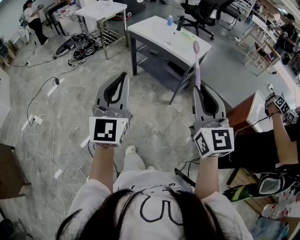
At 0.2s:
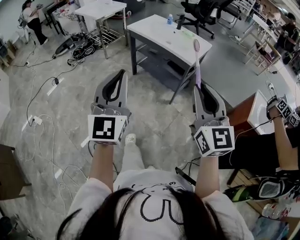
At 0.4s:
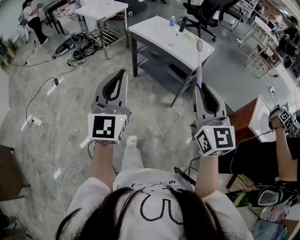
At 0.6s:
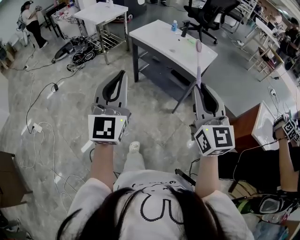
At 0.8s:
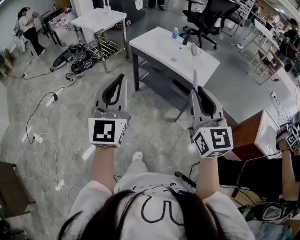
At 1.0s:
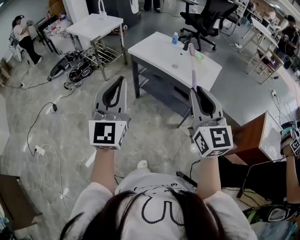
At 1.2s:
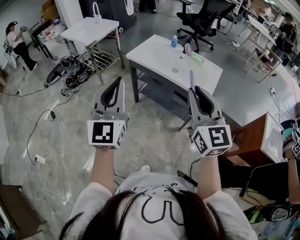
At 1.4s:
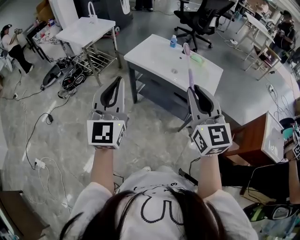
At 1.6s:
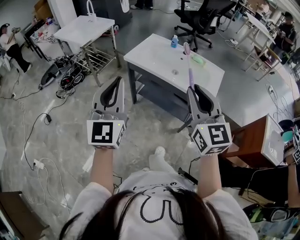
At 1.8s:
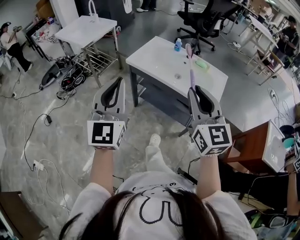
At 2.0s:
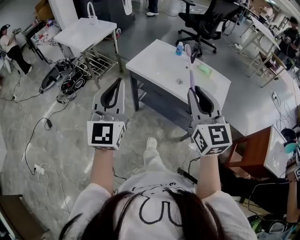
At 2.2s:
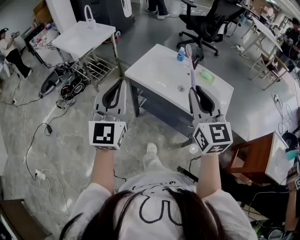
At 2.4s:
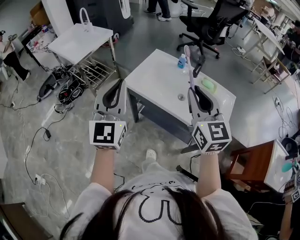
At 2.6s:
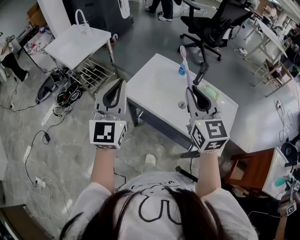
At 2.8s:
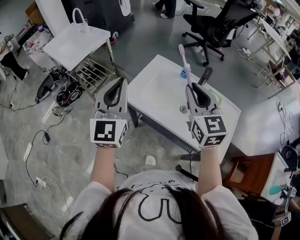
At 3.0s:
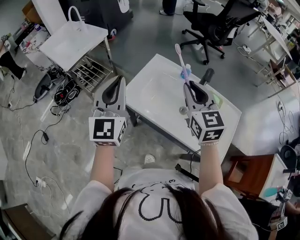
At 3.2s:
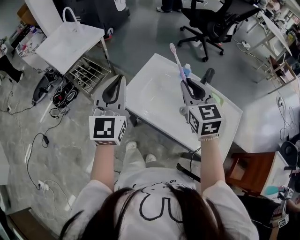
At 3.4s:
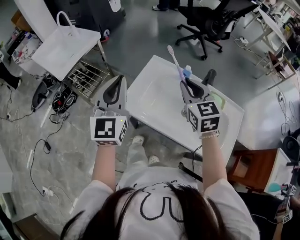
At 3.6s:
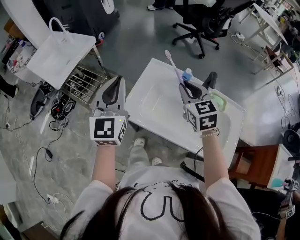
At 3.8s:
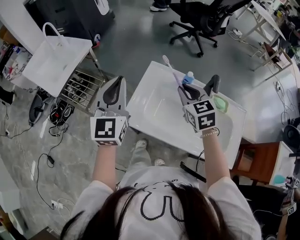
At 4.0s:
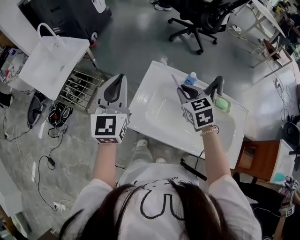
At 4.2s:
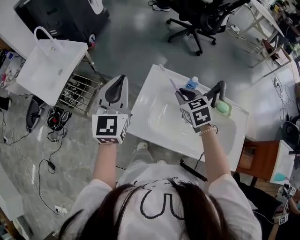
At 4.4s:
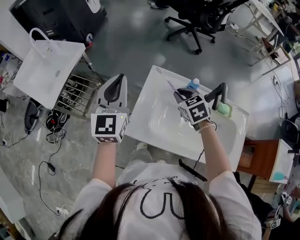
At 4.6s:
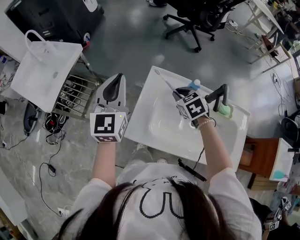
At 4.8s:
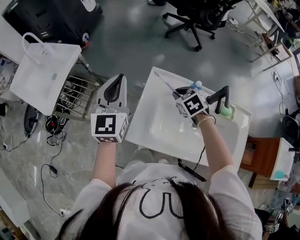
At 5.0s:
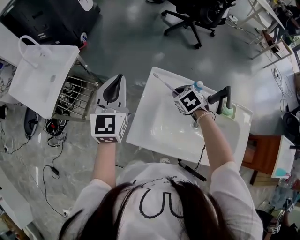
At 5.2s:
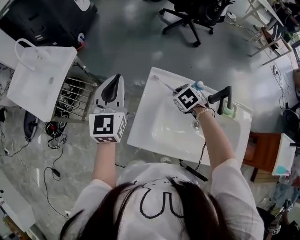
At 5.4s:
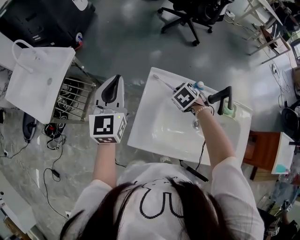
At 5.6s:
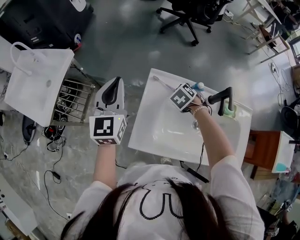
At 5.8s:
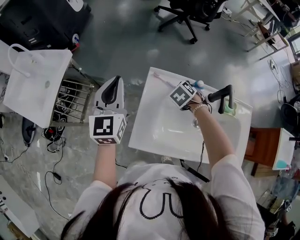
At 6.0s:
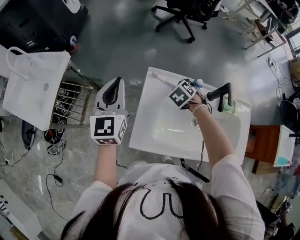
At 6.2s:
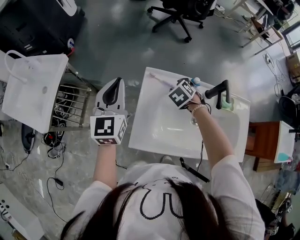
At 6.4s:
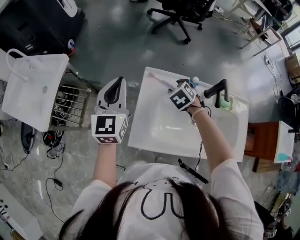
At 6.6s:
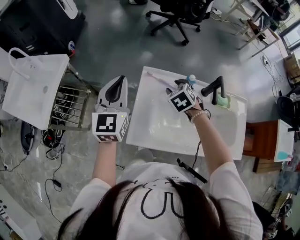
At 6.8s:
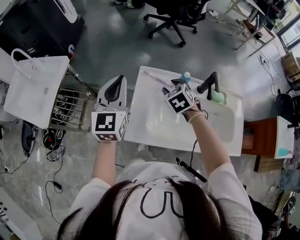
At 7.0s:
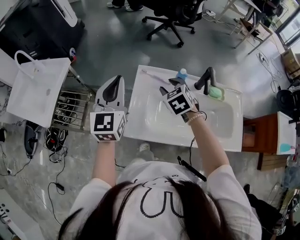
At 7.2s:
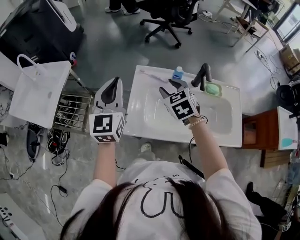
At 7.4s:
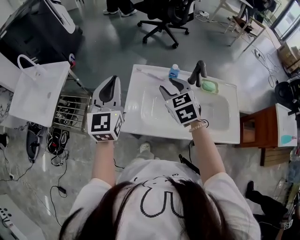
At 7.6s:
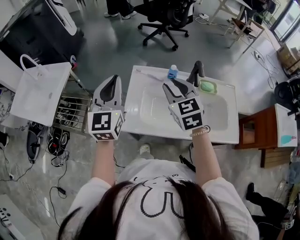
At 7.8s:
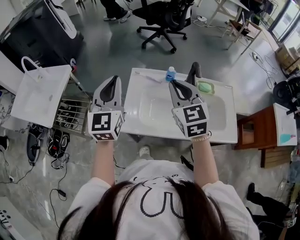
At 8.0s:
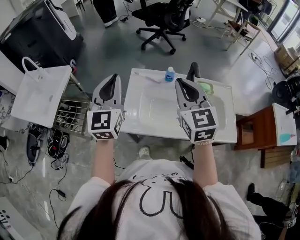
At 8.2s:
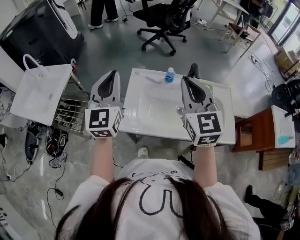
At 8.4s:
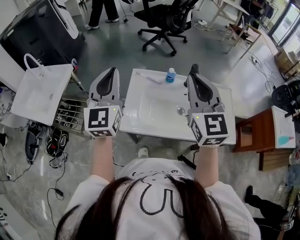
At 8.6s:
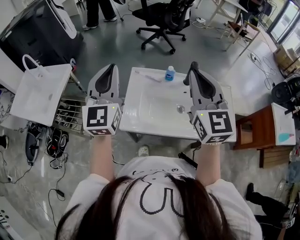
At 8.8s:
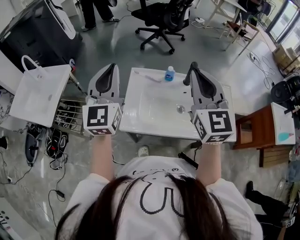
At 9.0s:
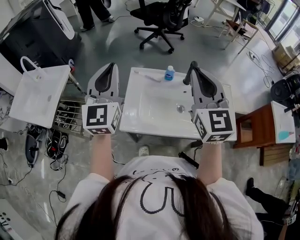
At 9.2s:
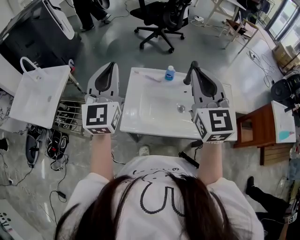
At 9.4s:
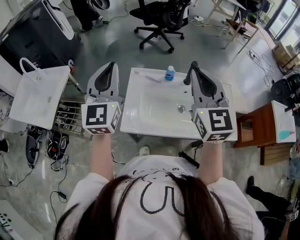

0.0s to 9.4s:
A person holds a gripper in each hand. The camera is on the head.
0.0s to 1.6s: The pair of grippers is taken forward, about 40 cm.
1.6s to 3.2s: The pair of grippers is taken forward, about 50 cm.
3.2s to 4.8s: The left gripper is displaced forward by approximately 25 cm. The right gripper moves downward and forward, roughly 30 cm, and points its fingers approximately 40 degrees further downward.
4.8s to 6.2s: The right gripper shifts by some 5 cm, and opens its fingers; the left gripper shifts by some 5 cm.
6.2s to 7.8s: The left gripper is displaced backward, upward and to the right by about 20 cm, while the right gripper shifts some 35 cm upward and backward, points its fingers roughly 50 degrees further upward, and closes.
7.8s to 9.4s: The left gripper moves upward, some 5 cm. Meanwhile the right gripper goes roughly 10 cm upward.

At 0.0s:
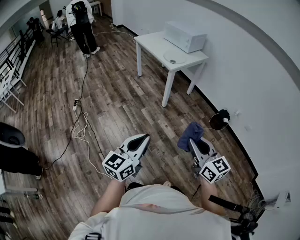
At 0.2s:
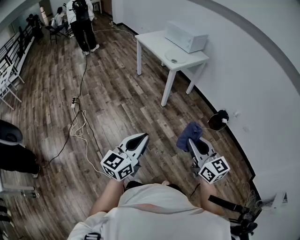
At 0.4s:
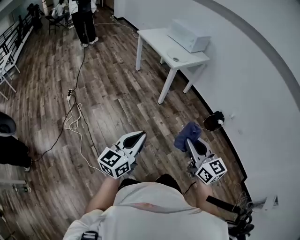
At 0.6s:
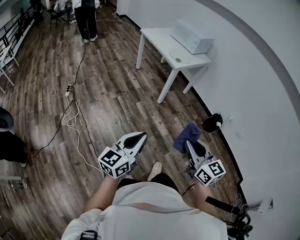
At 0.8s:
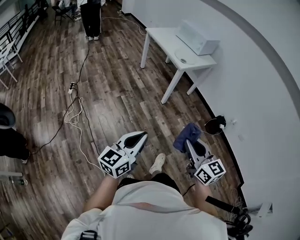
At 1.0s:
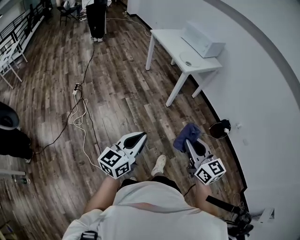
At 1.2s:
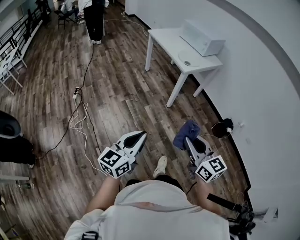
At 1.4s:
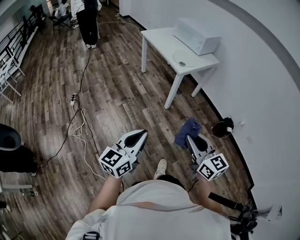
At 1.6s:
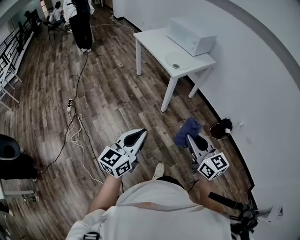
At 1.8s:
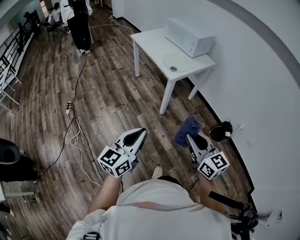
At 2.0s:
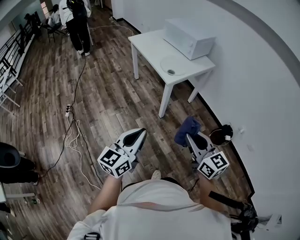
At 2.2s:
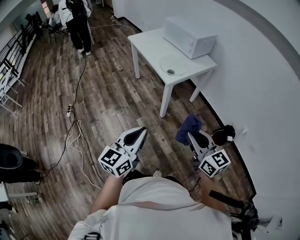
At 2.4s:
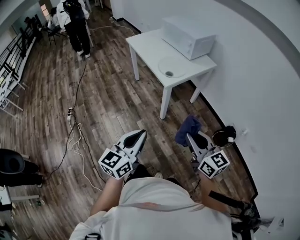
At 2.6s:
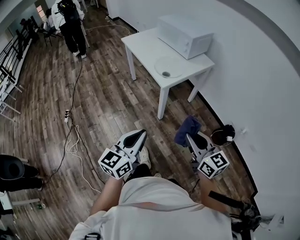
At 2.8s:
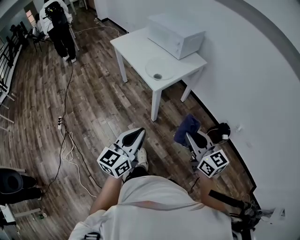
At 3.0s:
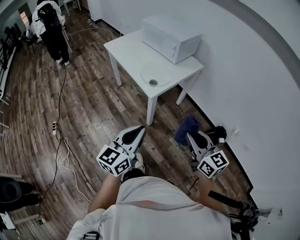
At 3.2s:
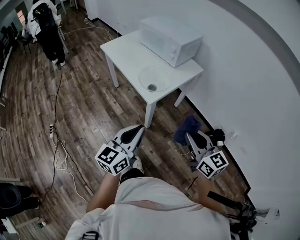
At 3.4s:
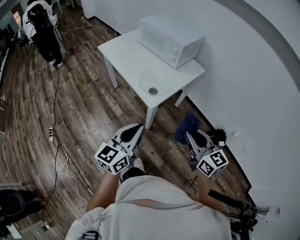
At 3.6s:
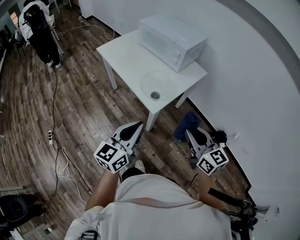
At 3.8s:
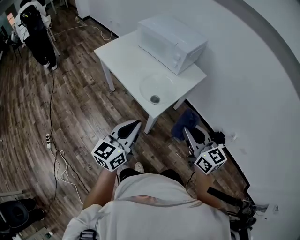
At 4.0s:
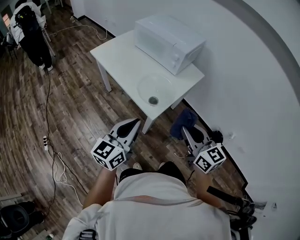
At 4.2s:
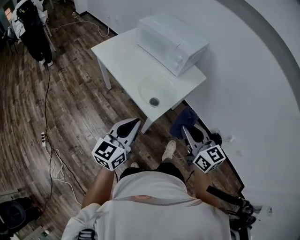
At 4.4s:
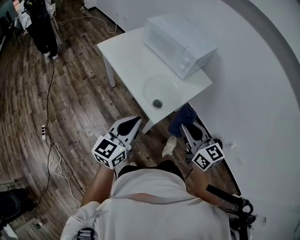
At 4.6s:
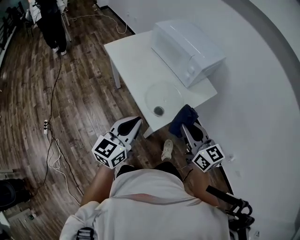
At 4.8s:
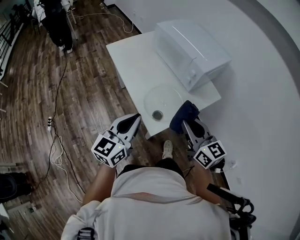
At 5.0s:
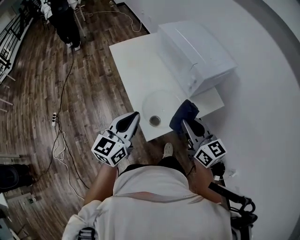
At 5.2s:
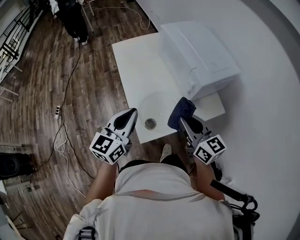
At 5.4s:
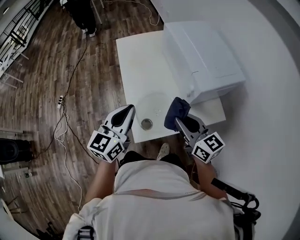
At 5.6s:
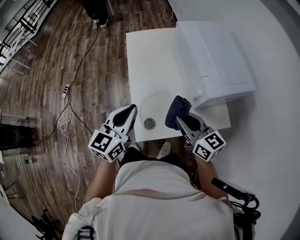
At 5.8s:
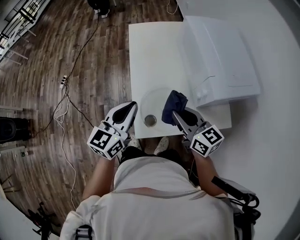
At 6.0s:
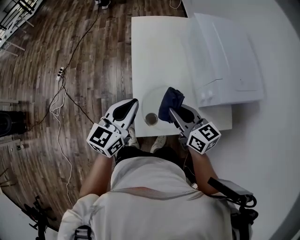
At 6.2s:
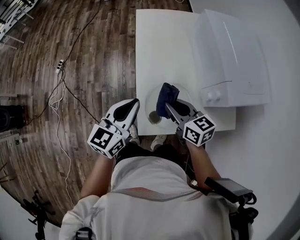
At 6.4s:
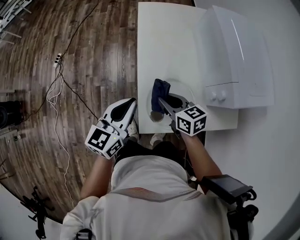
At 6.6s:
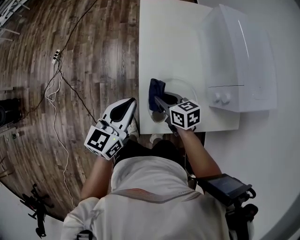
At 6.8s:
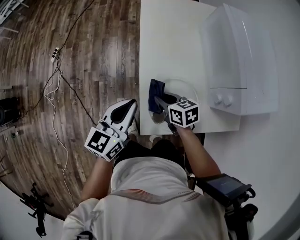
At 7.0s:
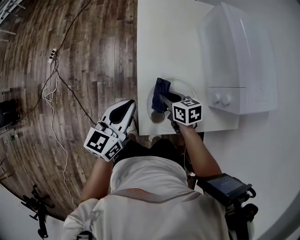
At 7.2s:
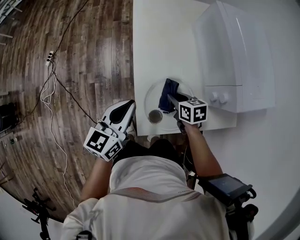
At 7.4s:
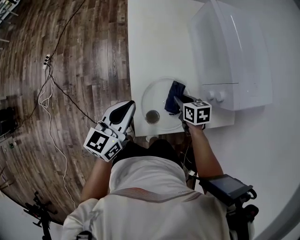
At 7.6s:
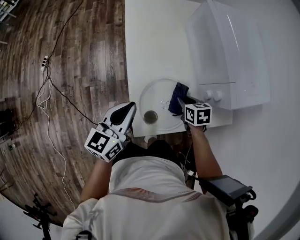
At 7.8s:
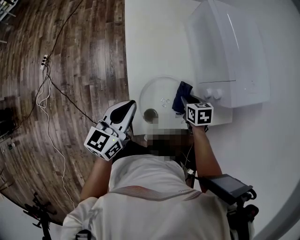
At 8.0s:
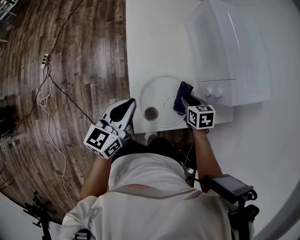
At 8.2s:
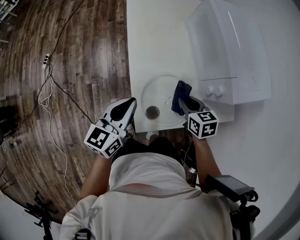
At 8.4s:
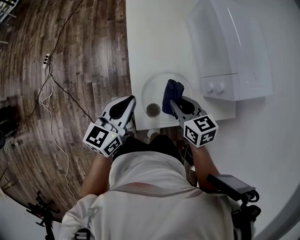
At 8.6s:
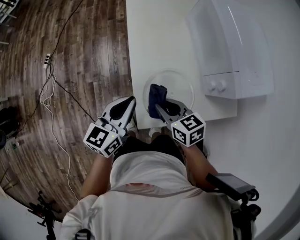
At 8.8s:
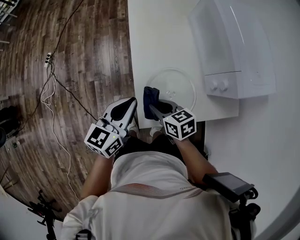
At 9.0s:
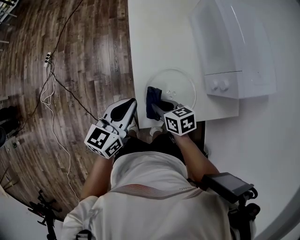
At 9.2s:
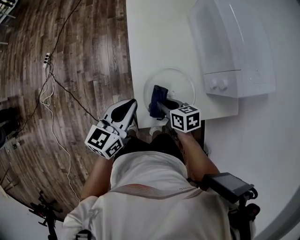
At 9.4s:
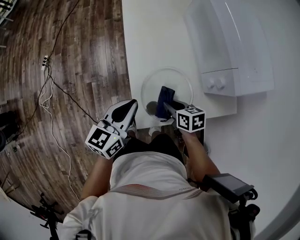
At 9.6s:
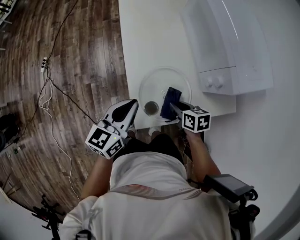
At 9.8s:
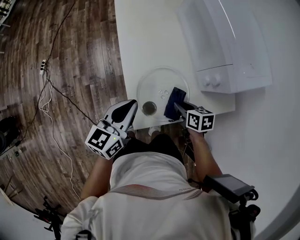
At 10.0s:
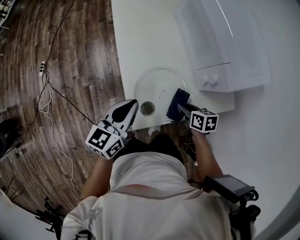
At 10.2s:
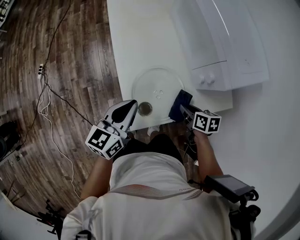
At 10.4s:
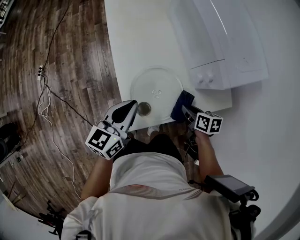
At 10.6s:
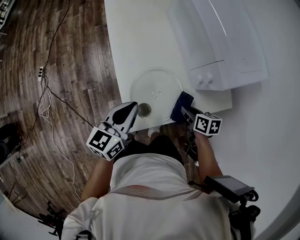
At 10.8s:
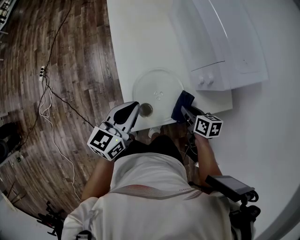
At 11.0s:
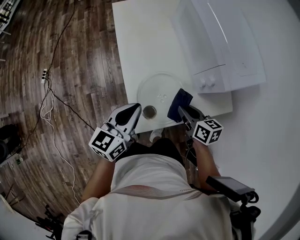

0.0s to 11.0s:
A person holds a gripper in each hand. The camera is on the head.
0.0s to 1.6s: The two grippers go roughly 20 cm forward.
1.6s to 3.2s: The two grippers go about 35 cm forward.
3.2s to 4.8s: Both grippers travel together forward, some 30 cm.
4.8s to 6.2s: The left gripper moves some 15 cm, and turns by approximately 30 degrees, while the right gripper moves approximately 20 cm, and turns by roughly 40 degrees.
6.2s to 7.8s: The right gripper shifts approximately 20 cm downward and to the right, and points its fingers approximately 40 degrees further downward; the left gripper heads downward, covering roughly 5 cm.
7.8s to 9.4s: The right gripper travels to the left and backward by about 10 cm, and turns by approximately 20 degrees.
9.4s to 11.0s: The right gripper shifts approximately 10 cm to the right and upward, and swivels roughly 20 degrees.

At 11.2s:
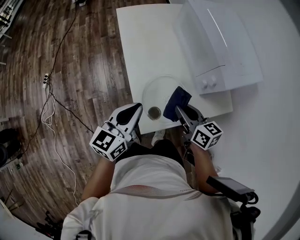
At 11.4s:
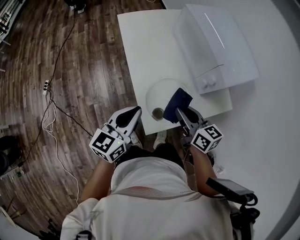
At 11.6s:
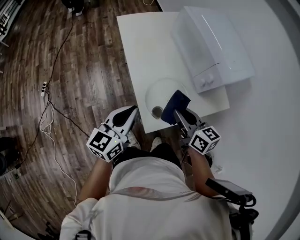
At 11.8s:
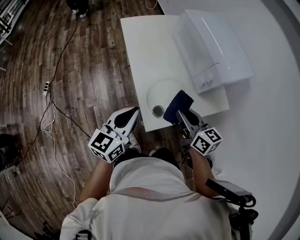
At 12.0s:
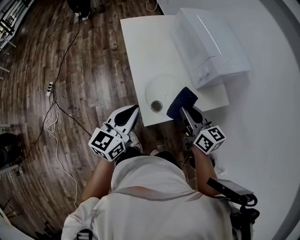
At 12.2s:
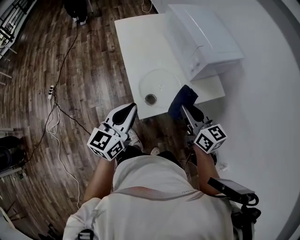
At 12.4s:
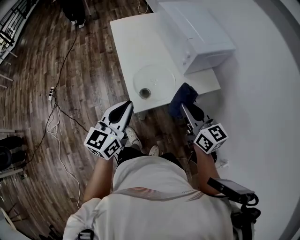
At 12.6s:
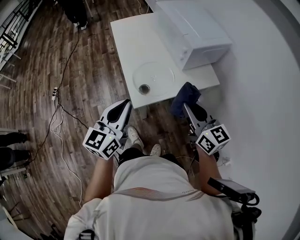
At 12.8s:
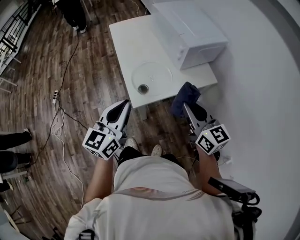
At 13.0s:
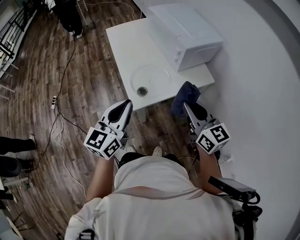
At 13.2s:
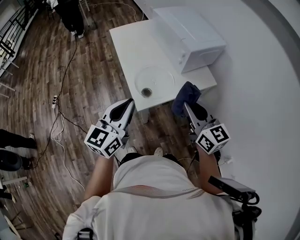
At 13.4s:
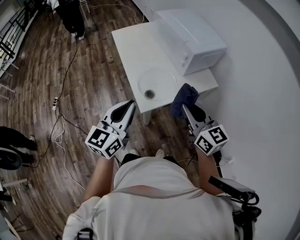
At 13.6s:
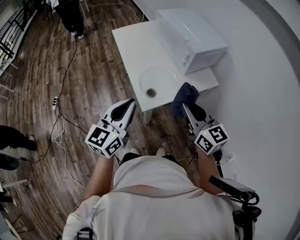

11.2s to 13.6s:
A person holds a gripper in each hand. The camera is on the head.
11.2s to 12.4s: The grippers both shift backward and upward by approximately 20 cm. The right gripper changes its angle by some 20 degrees.
12.4s to 13.6s: The left gripper moves upward, about 5 cm; the right gripper goes some 10 cm backward and upward.

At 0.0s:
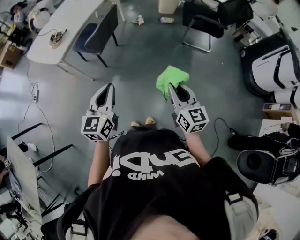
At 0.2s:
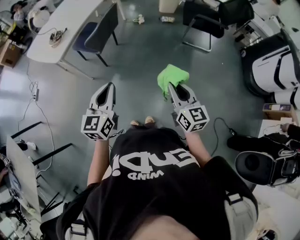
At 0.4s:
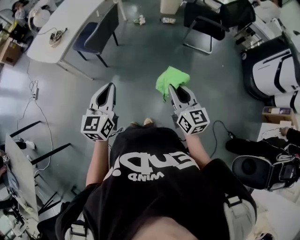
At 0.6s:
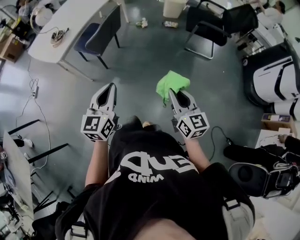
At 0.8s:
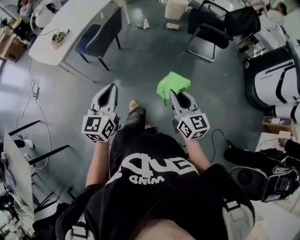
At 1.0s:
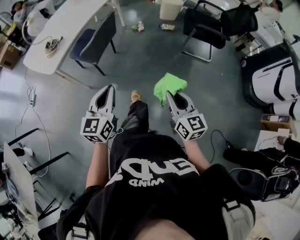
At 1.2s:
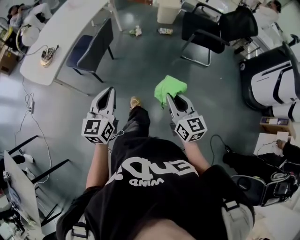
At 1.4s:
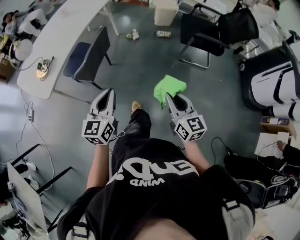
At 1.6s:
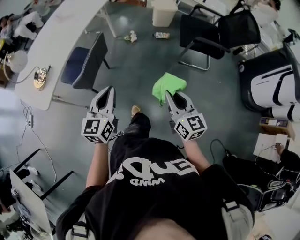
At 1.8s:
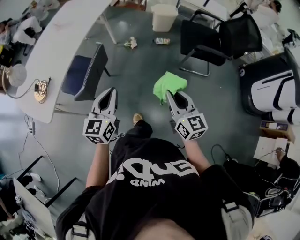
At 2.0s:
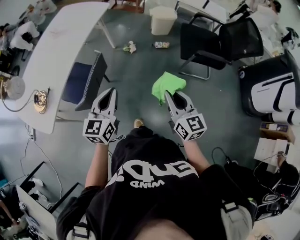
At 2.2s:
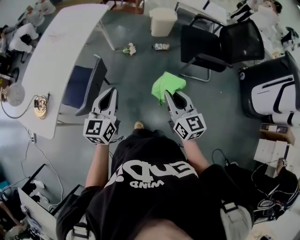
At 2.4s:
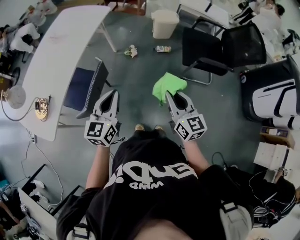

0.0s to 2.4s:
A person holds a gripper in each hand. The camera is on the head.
0.0s to 1.2s: Both grippers travel together forward, roughly 15 cm.
1.2s to 2.4s: The grippers both shift forward by about 35 cm.
